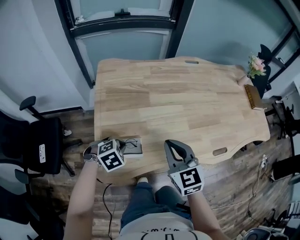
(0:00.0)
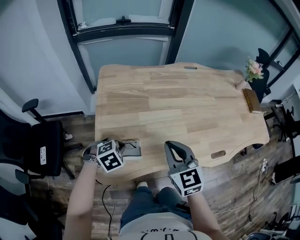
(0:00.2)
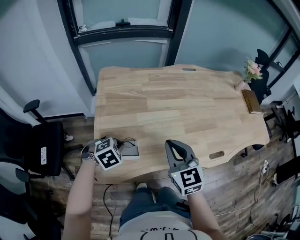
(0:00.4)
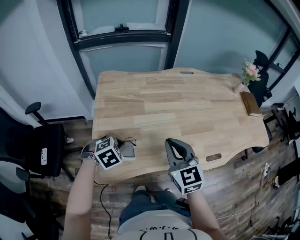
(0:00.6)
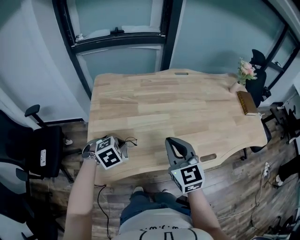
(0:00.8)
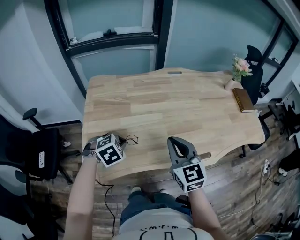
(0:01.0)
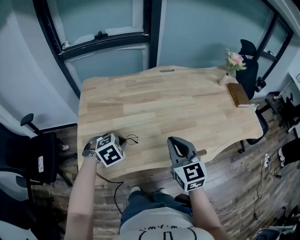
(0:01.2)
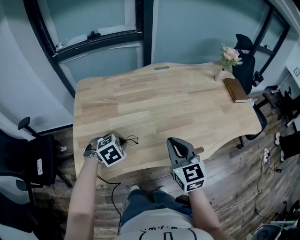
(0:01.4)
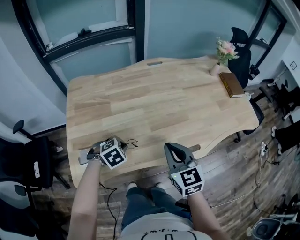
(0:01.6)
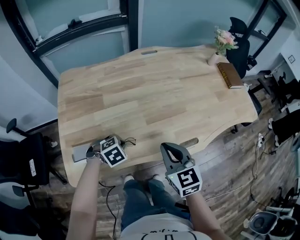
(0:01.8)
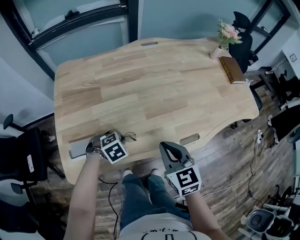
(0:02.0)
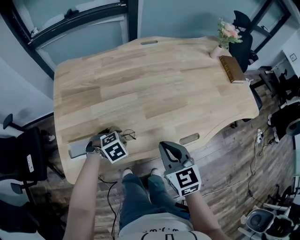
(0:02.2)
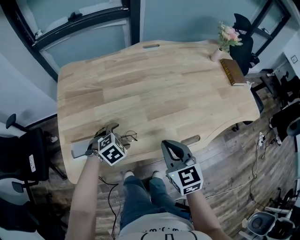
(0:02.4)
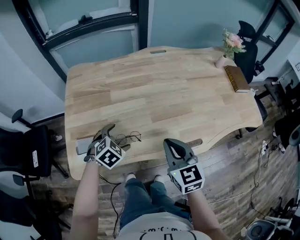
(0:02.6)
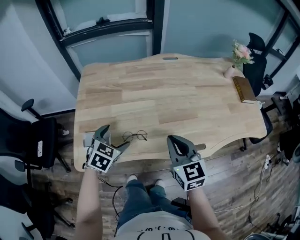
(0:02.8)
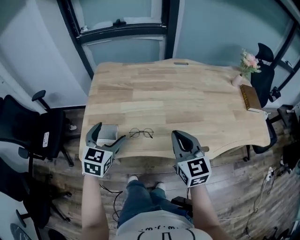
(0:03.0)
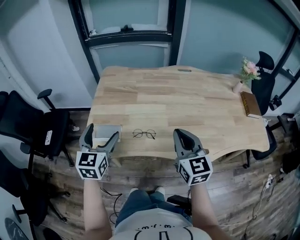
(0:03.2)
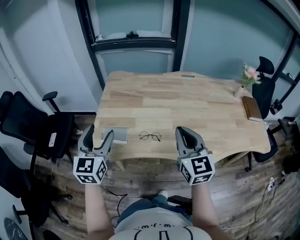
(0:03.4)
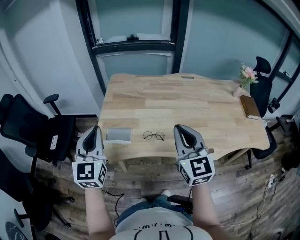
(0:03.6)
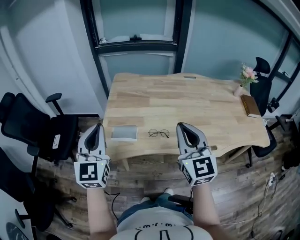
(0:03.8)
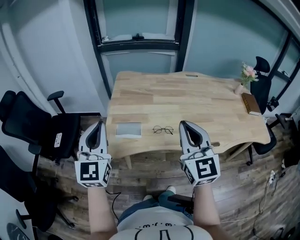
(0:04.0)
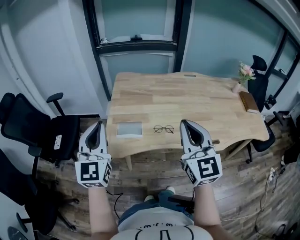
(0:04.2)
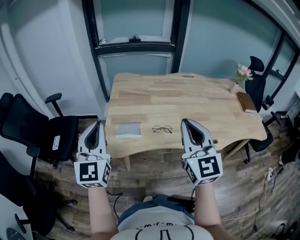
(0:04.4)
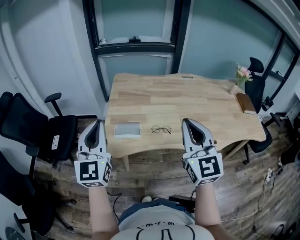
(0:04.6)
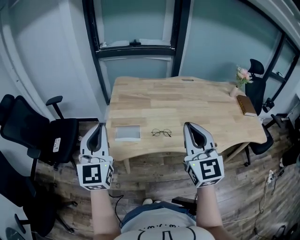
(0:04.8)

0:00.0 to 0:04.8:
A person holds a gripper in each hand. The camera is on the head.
0:00.0 to 0:01.6: The grippers both shift to the right by some 20 cm.
0:01.6 to 0:03.2: The left gripper is displaced upward by about 20 cm, angles its fingers upward, by roughly 50 degrees, and opens its fingers. Meanwhile the right gripper goes roughly 5 cm upward.
0:03.2 to 0:04.8: The grippers both shift upward, to the left and backward by roughly 20 cm. The left gripper changes its angle by roughly 20 degrees, and closes its fingers.

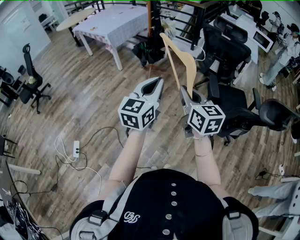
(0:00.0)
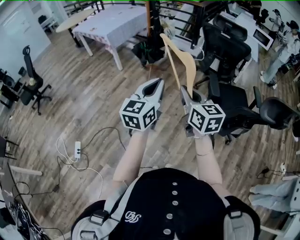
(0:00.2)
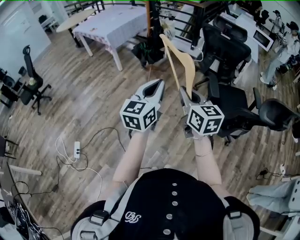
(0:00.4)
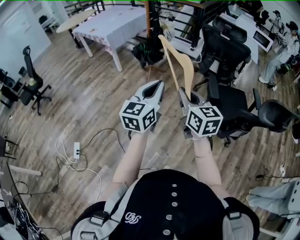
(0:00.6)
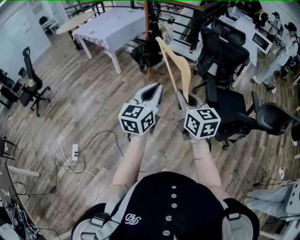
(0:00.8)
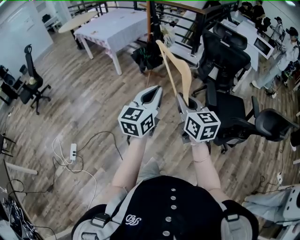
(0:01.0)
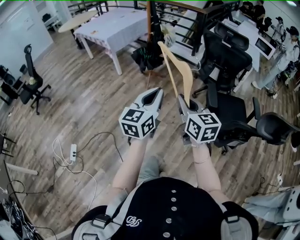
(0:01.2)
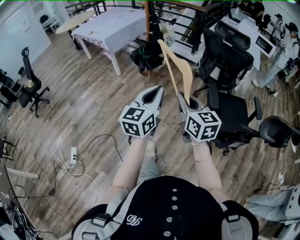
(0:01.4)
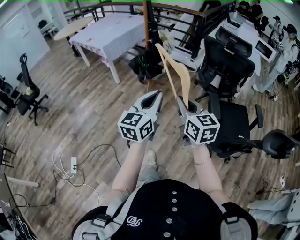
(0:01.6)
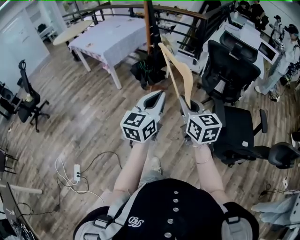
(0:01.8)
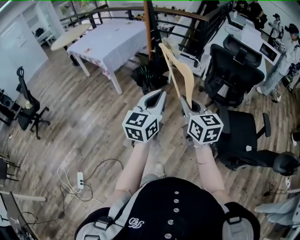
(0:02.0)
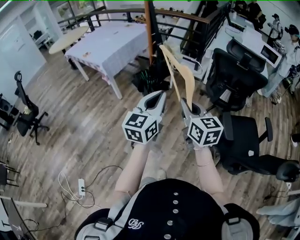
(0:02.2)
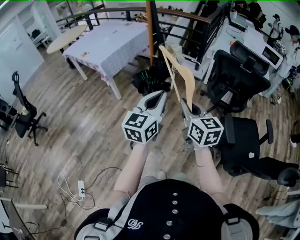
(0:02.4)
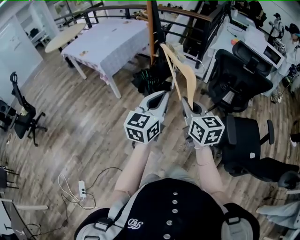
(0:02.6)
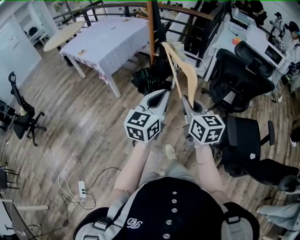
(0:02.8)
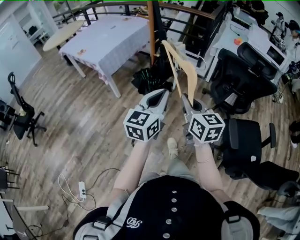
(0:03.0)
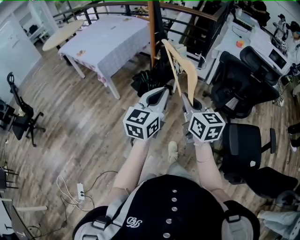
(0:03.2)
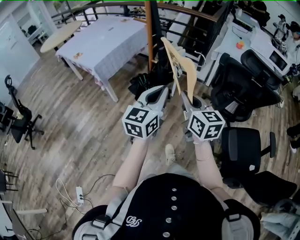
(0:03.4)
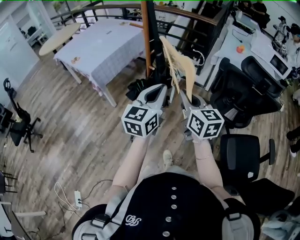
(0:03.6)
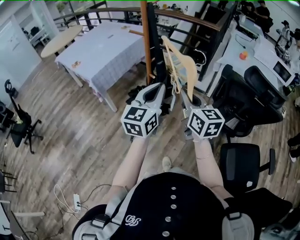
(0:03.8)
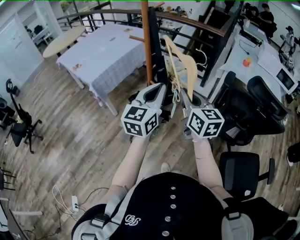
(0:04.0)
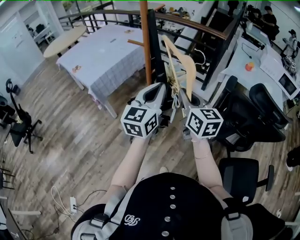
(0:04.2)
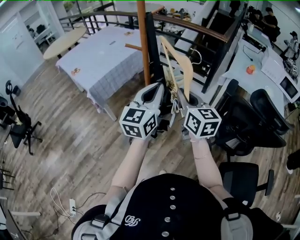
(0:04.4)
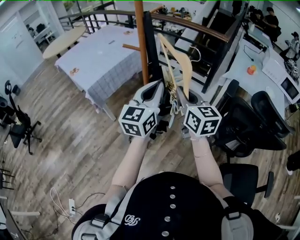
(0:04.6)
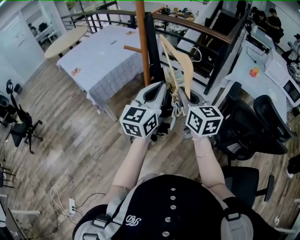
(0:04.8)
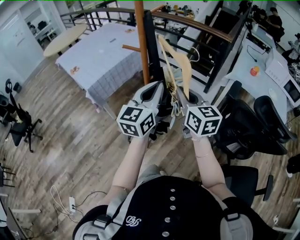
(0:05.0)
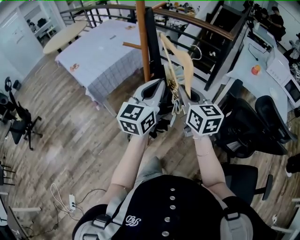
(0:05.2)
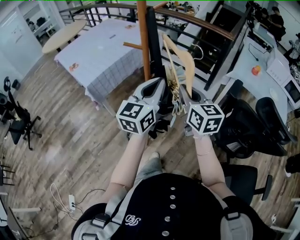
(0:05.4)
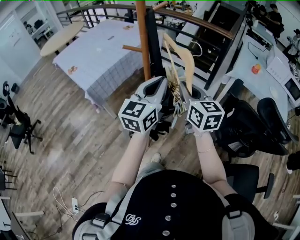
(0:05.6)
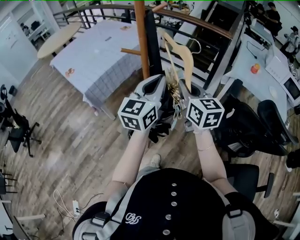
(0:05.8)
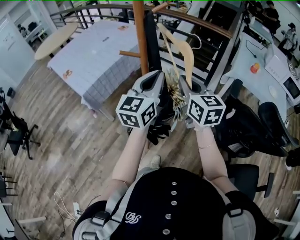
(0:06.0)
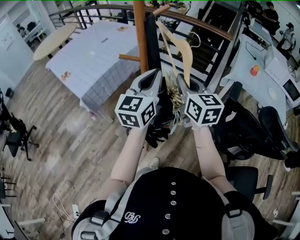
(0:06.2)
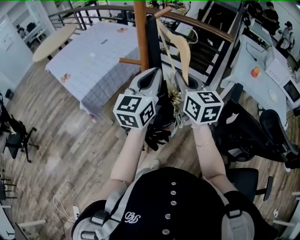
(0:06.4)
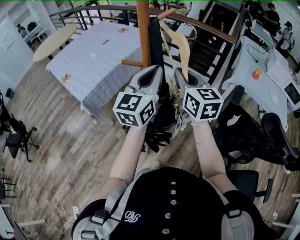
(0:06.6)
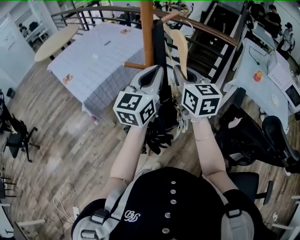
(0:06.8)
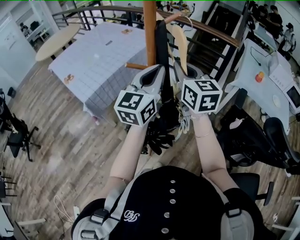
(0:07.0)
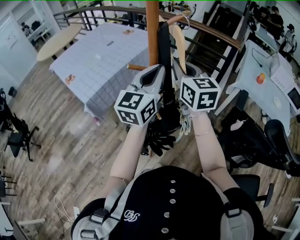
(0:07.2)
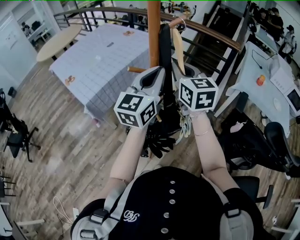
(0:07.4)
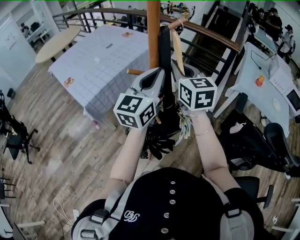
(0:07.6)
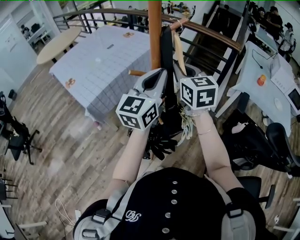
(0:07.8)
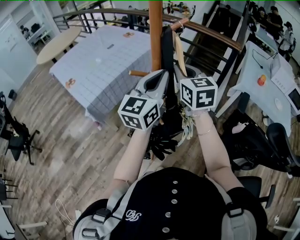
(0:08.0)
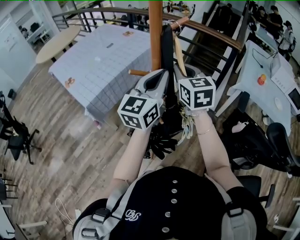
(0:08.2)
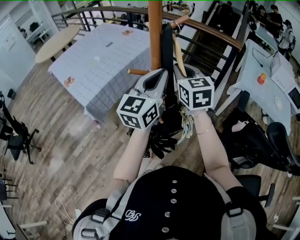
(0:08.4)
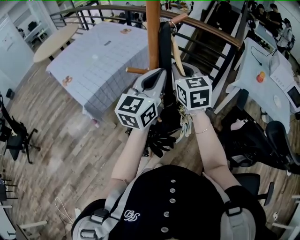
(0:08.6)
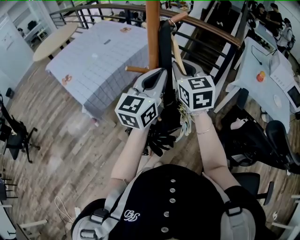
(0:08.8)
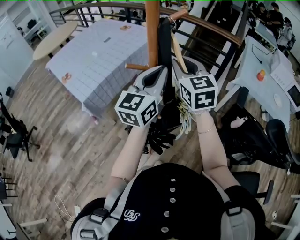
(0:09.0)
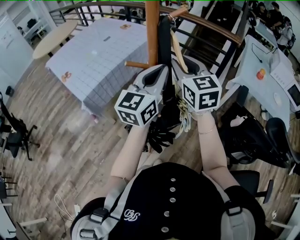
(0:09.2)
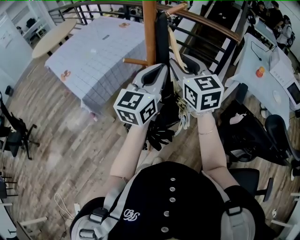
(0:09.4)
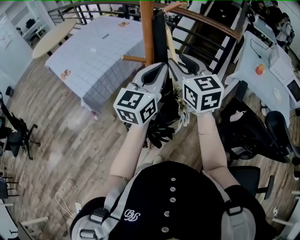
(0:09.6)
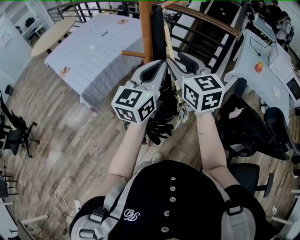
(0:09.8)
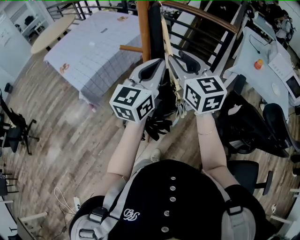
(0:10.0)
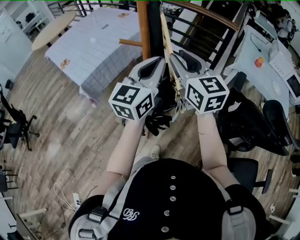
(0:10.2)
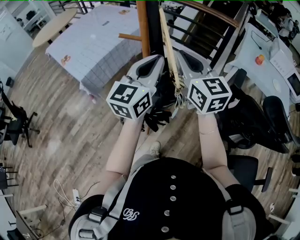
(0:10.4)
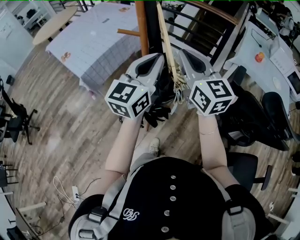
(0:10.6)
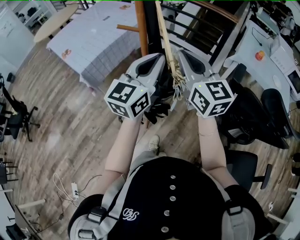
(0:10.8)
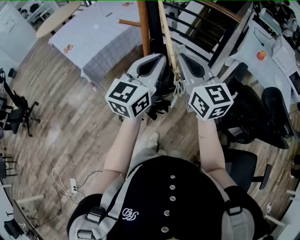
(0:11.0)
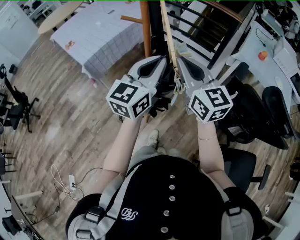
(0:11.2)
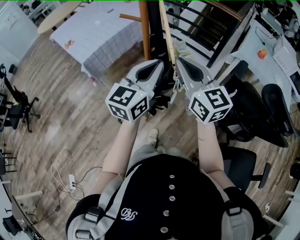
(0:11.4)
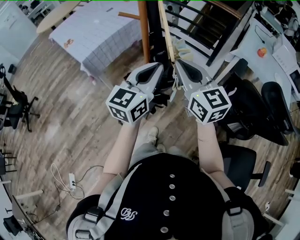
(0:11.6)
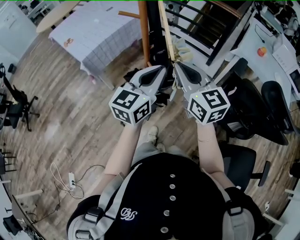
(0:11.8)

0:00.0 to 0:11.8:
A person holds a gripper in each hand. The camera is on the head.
0:00.0 to 0:01.4: Both grippers travel together forward, roughly 5 cm.
0:01.4 to 0:03.0: The two grippers go approximately 35 cm forward.
0:03.0 to 0:04.4: Both grippers travel together forward, roughly 30 cm.
0:04.4 to 0:06.0: Both grippers move forward, approximately 15 cm.
0:06.0 to 0:07.4: The left gripper shifts about 5 cm forward. Meanwhile the right gripper is displaced forward, to the left and upward by roughly 15 cm.
0:07.4 to 0:08.8: There are only small adjustments of the grippers.
0:08.8 to 0:10.4: The two grippers go approximately 10 cm backward. The right gripper opens and closes again.
0:10.4 to 0:11.8: The grippers both shift backward and downward by roughly 10 cm.

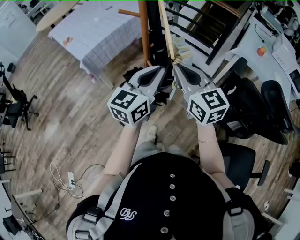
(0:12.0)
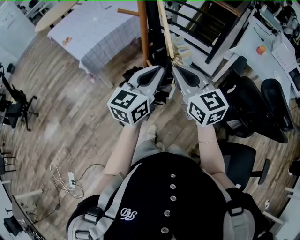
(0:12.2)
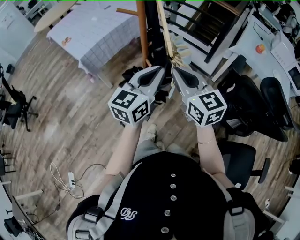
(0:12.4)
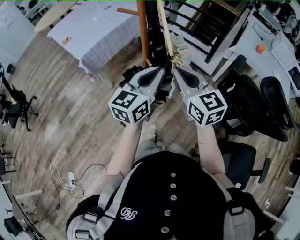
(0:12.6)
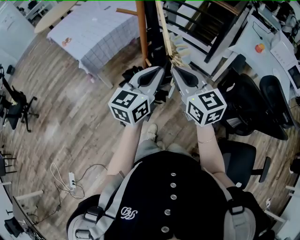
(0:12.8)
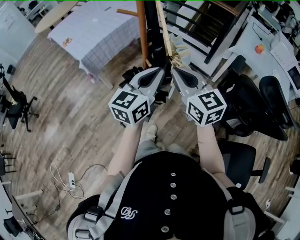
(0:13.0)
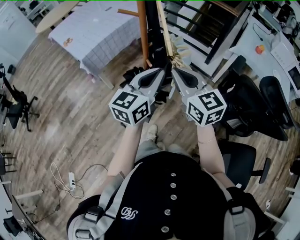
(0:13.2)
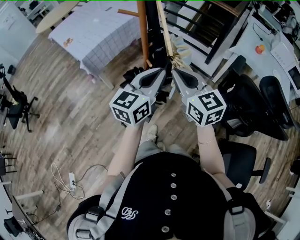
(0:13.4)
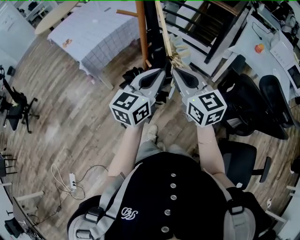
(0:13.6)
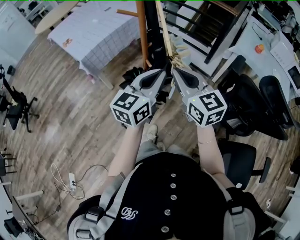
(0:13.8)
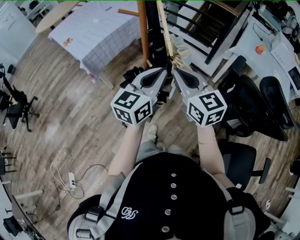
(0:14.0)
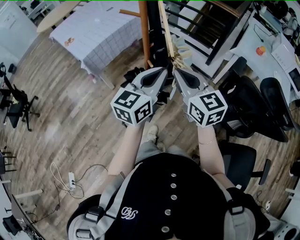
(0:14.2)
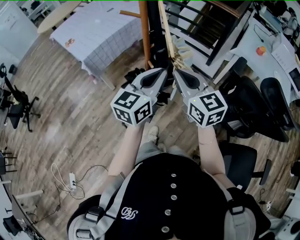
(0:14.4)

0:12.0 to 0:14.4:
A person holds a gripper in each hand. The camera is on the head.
0:12.0 to 0:13.2: The grippers stay close to where they were, moving slightly.
0:13.2 to 0:14.4: The two grippers keep their place.

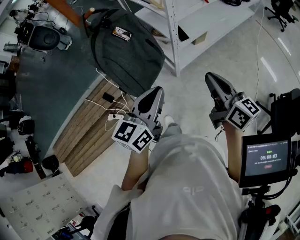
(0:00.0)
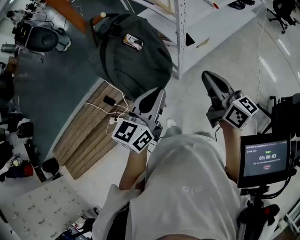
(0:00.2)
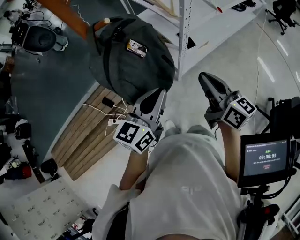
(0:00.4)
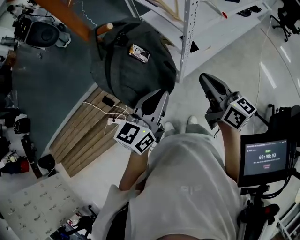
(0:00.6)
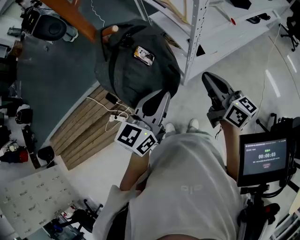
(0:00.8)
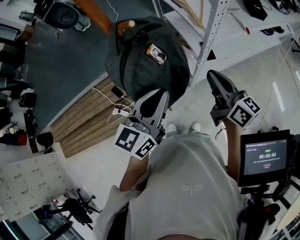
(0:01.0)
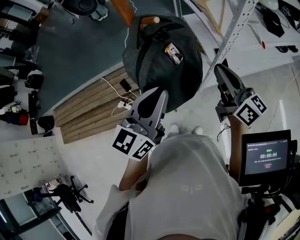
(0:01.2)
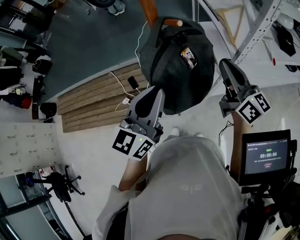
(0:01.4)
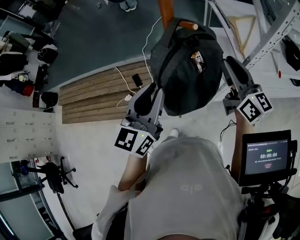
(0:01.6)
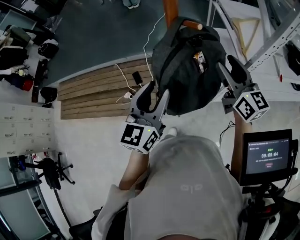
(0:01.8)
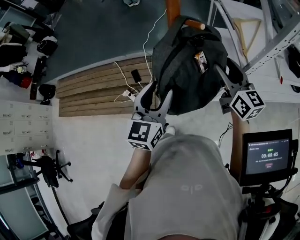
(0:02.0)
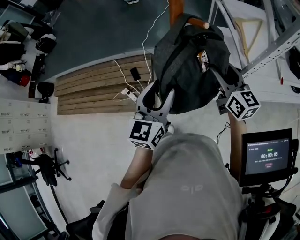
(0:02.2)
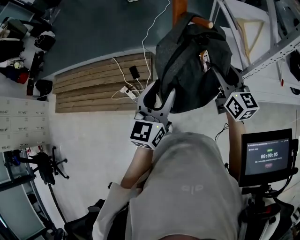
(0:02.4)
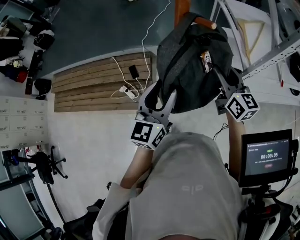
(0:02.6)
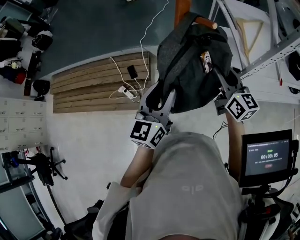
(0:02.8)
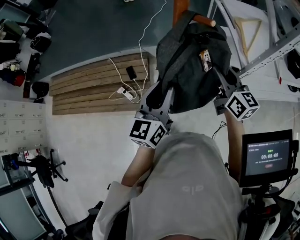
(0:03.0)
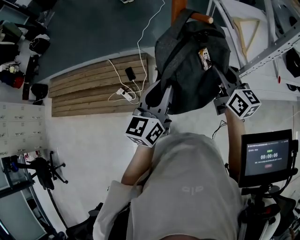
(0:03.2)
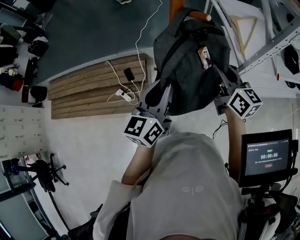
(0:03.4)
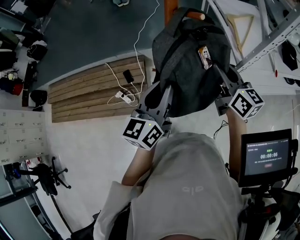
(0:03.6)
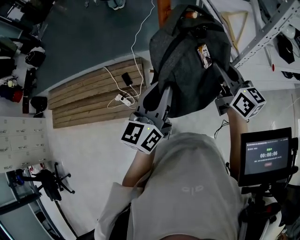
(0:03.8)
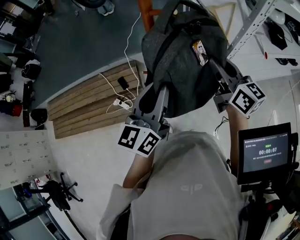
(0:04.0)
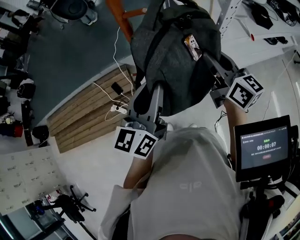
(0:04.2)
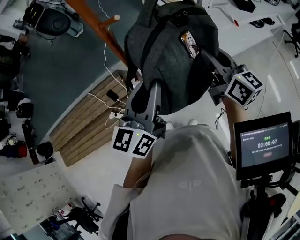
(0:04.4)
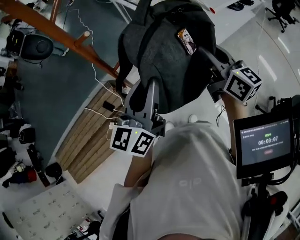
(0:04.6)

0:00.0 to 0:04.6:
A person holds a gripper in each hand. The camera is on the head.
0:00.0 to 0:01.6: The right gripper moves about 35 cm, and changes its angle by about 30 degrees; the left gripper shifts by roughly 20 cm, and swivels about 40 degrees.
0:01.6 to 0:03.0: The two grippers go about 5 cm downward. The right gripper opens and closes again.
0:03.0 to 0:04.6: The left gripper moves roughly 15 cm, and rotates roughly 30 degrees. The right gripper changes place by approximately 20 cm, and rotates some 30 degrees.
